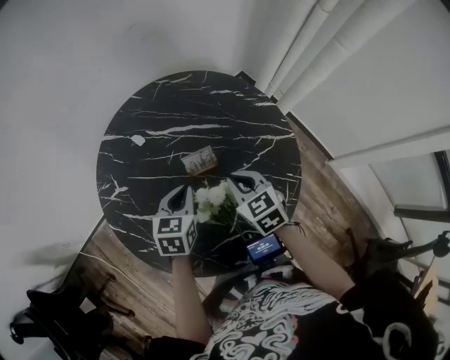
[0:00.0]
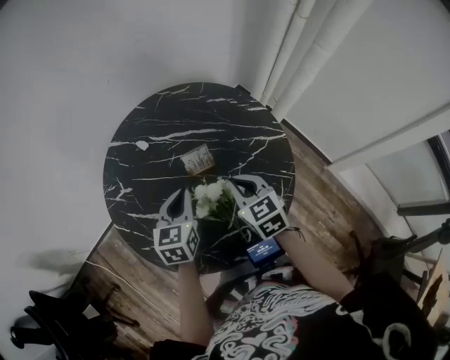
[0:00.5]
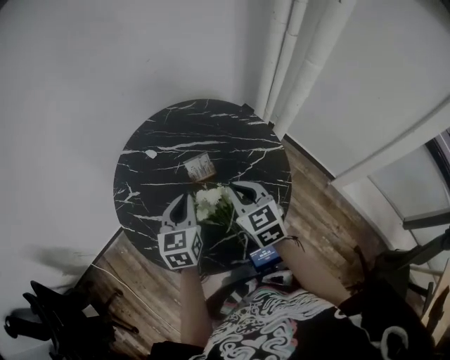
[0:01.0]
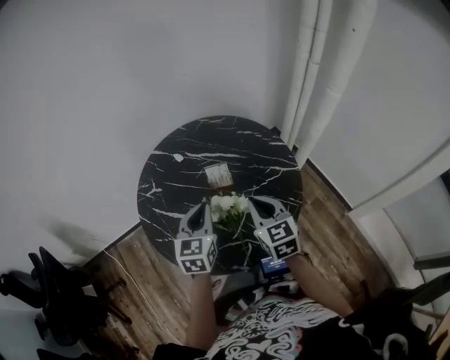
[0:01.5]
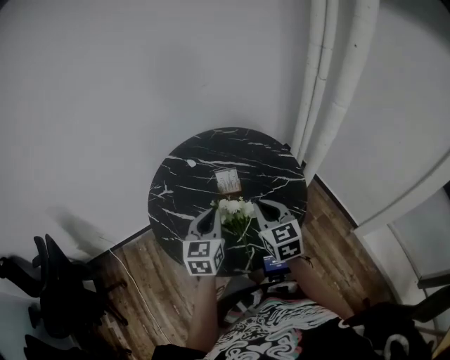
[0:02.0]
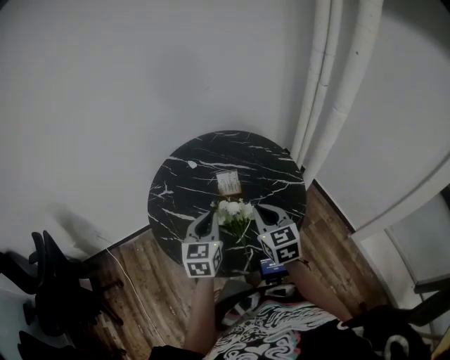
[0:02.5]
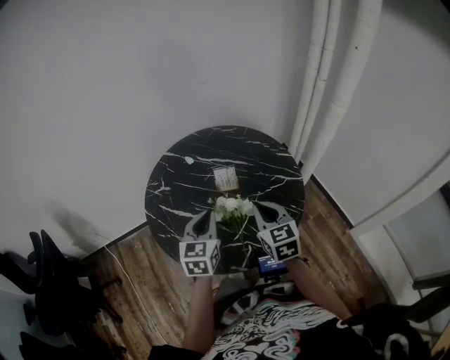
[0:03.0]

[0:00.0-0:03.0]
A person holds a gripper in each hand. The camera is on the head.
0.0 to 1.5 s: The two grippers go some 15 cm upward and backward. The left gripper swivels about 20 degrees.
1.5 to 3.0 s: There are only small adjustments of the grippers.

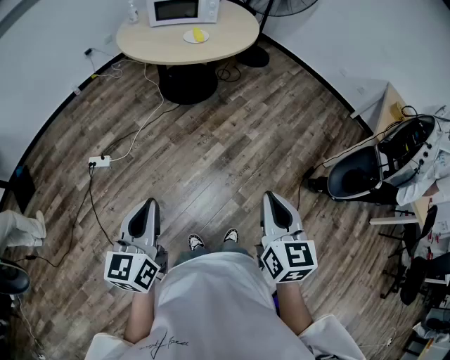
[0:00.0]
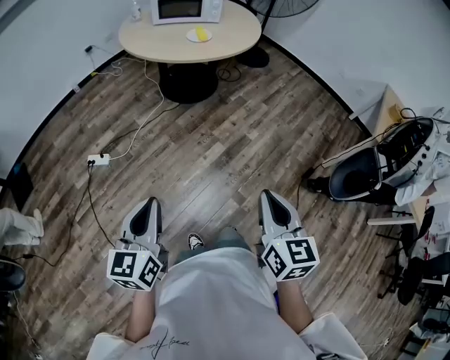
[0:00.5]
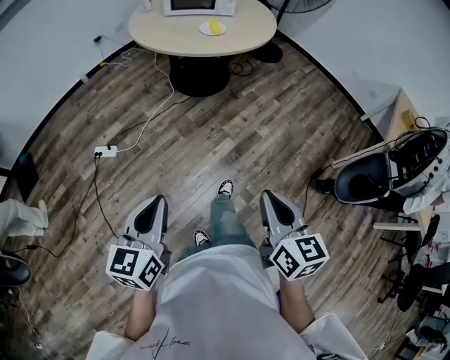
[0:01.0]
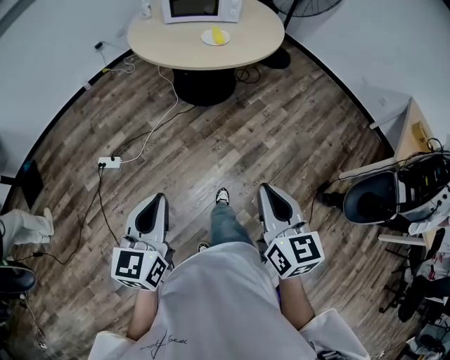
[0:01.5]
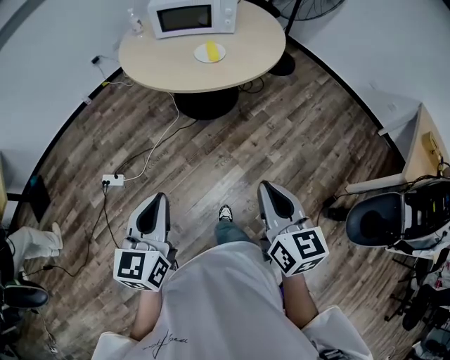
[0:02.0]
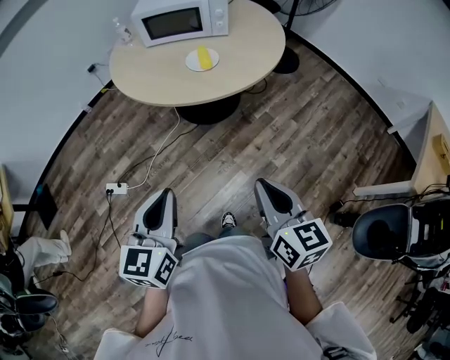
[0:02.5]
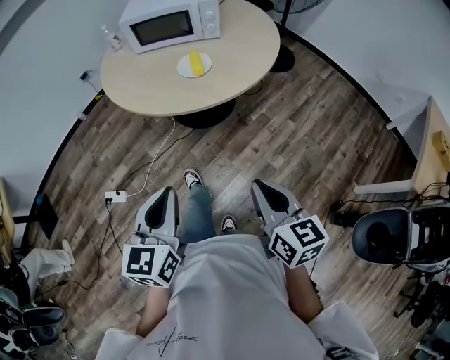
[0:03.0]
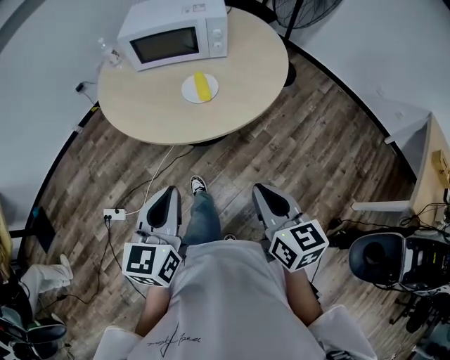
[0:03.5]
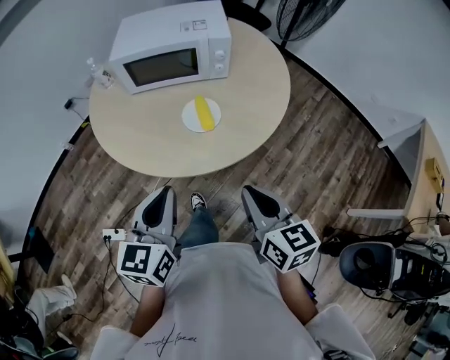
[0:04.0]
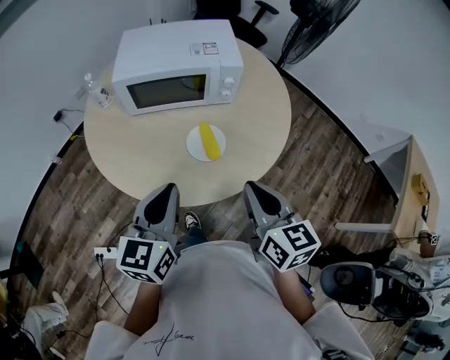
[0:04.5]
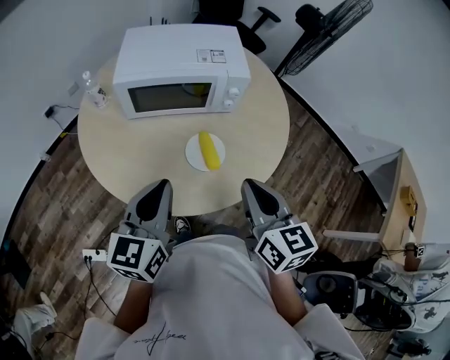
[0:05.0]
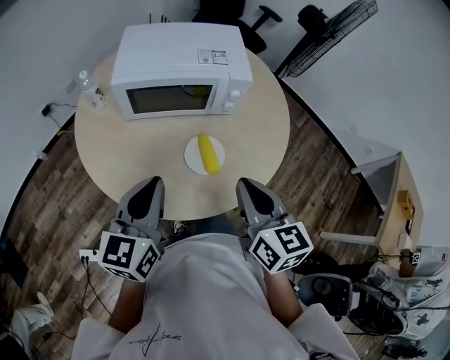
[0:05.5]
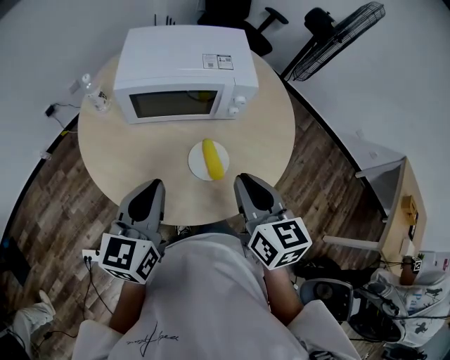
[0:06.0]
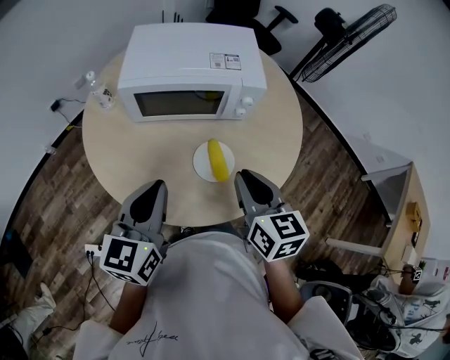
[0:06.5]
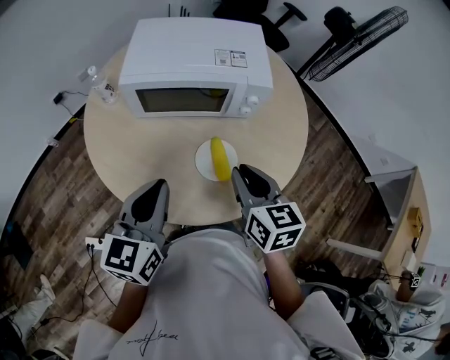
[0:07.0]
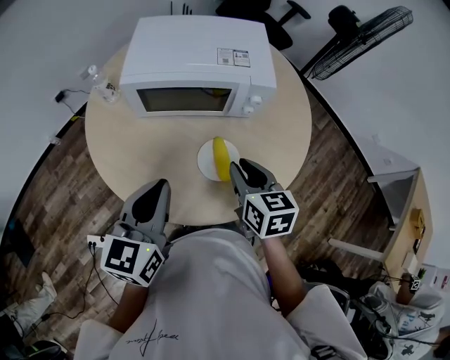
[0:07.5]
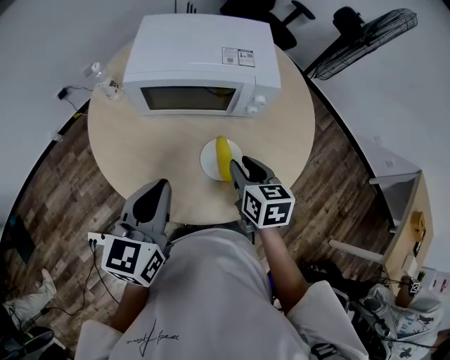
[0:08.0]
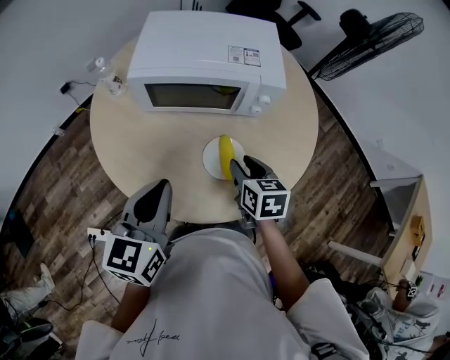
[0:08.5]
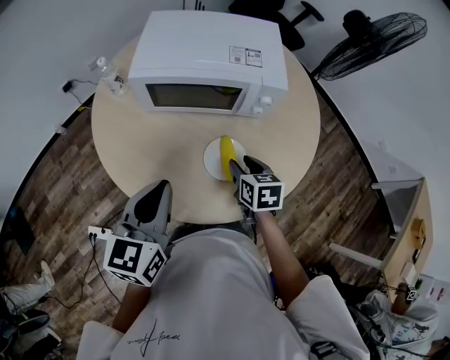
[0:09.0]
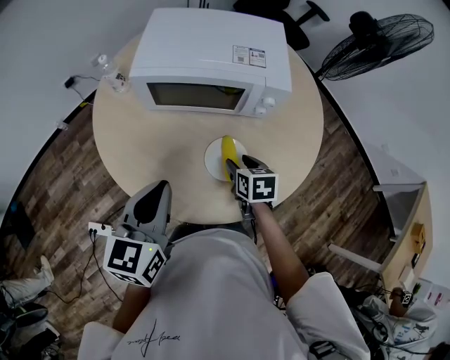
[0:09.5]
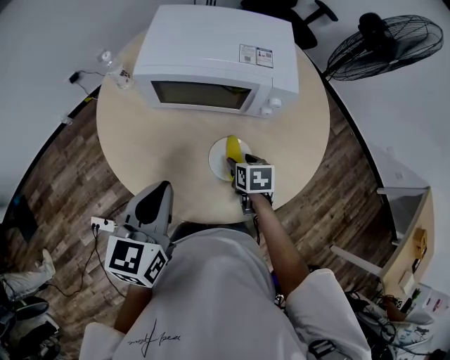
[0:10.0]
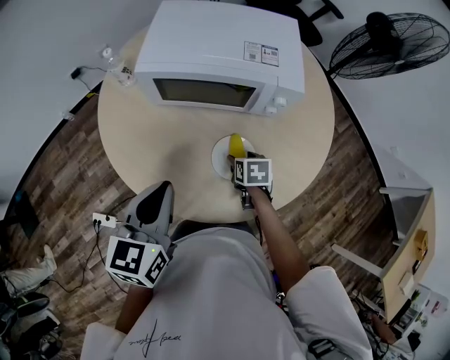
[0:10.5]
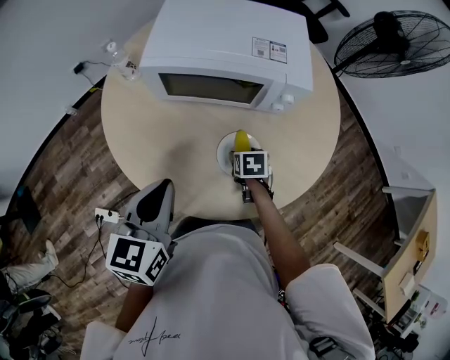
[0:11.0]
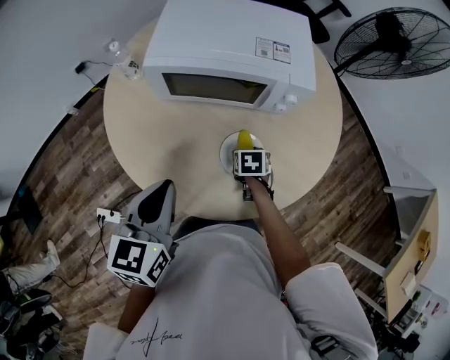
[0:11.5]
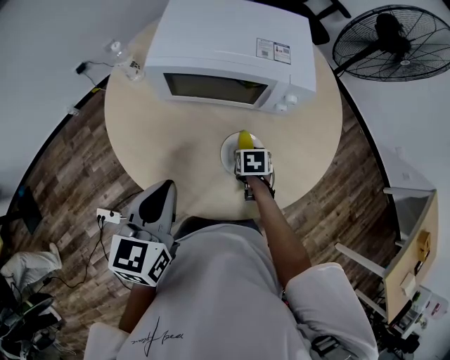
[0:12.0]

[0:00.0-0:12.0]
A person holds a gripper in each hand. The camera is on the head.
0.0 to 2.0 s: Both grippers move forward, about 30 cm.
2.0 to 4.0 s: The two grippers go approximately 40 cm forward.
4.0 to 6.0 s: Both grippers move forward and to the left, roughly 25 cm.
6.0 to 8.0 s: The right gripper goes roughly 15 cm downward and forward.
8.0 to 10.0 s: The right gripper goes roughly 15 cm downward, rotates some 20 degrees, and opens up.
10.0 to 12.0 s: The right gripper heads downward, covering approximately 5 cm.

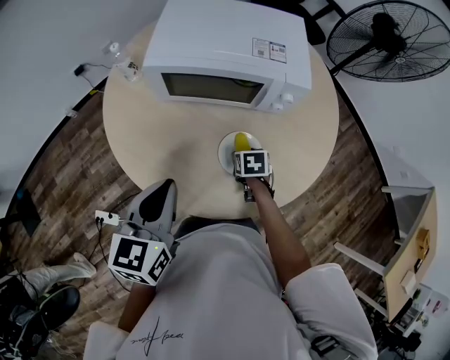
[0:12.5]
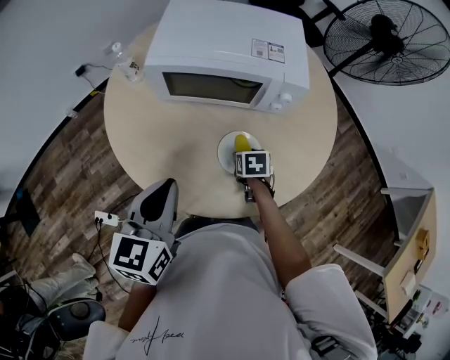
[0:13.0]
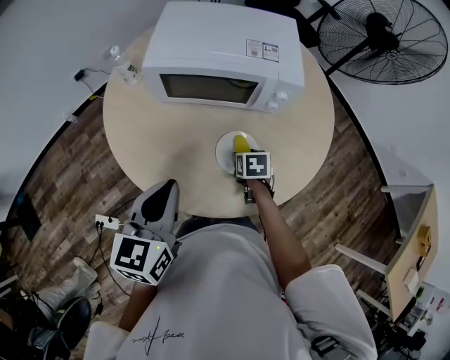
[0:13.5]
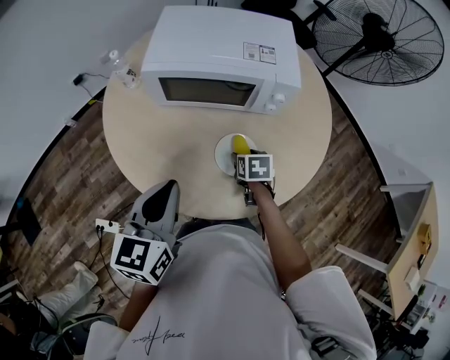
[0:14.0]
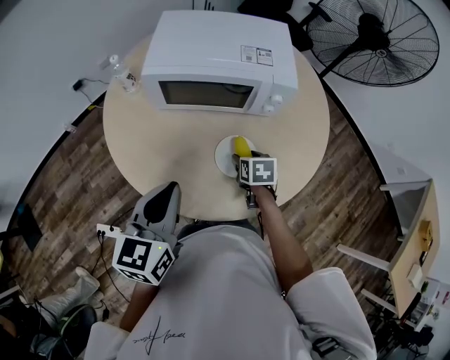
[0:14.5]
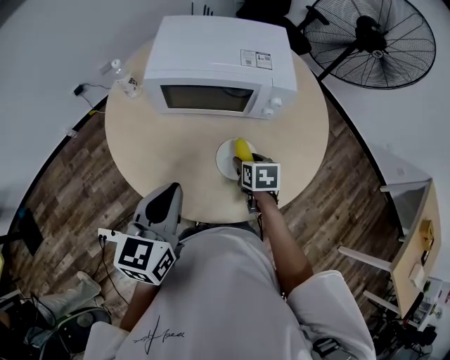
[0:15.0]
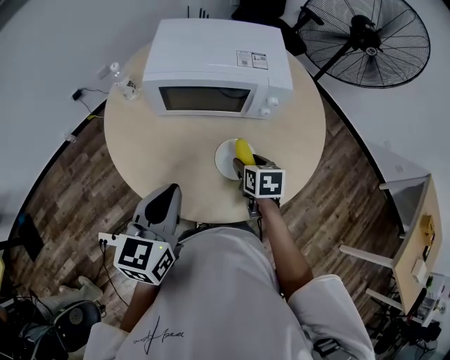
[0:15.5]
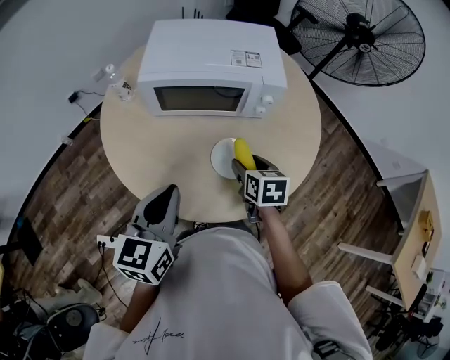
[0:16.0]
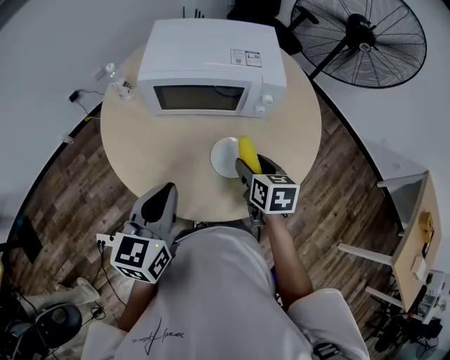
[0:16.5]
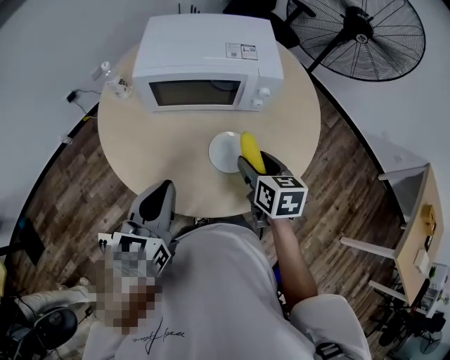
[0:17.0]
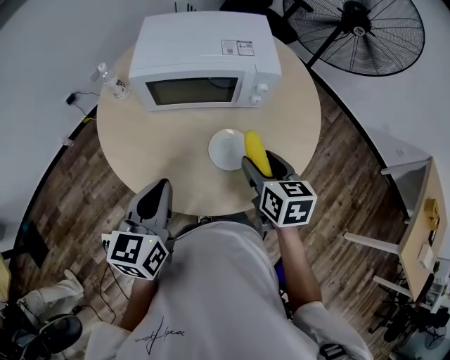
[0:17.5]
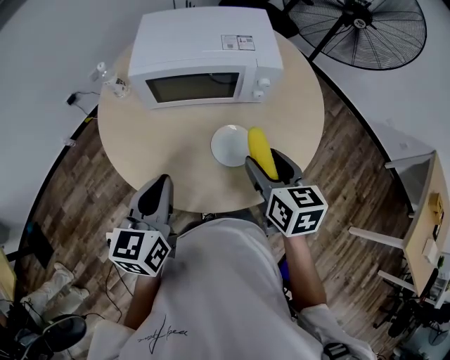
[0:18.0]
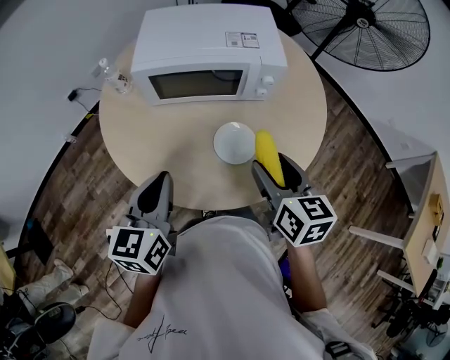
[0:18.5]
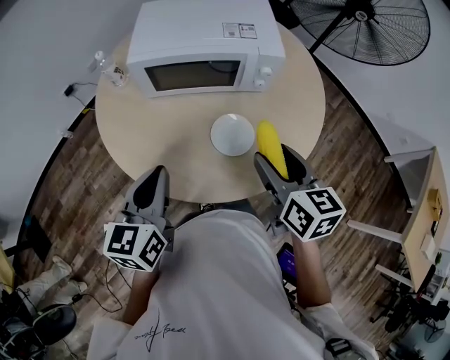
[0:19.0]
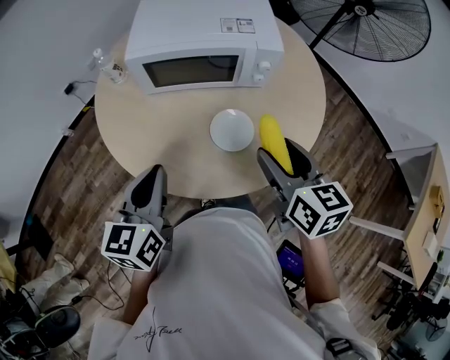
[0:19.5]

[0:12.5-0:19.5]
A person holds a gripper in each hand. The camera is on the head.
12.5 to 14.5 s: The right gripper shifts approximately 5 cm upward.
14.5 to 16.0 s: The right gripper is displaced upward by about 10 cm.
16.0 to 17.5 s: The right gripper moves upward, some 10 cm.
17.5 to 19.5 s: The right gripper shifts some 5 cm upward.

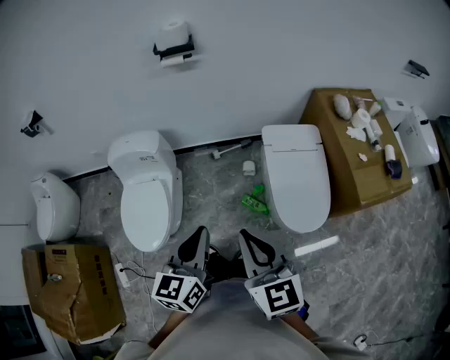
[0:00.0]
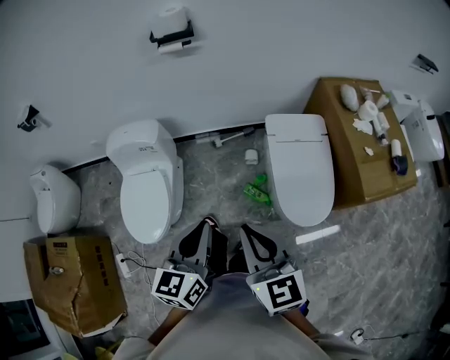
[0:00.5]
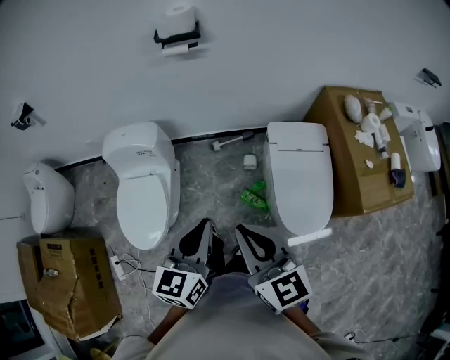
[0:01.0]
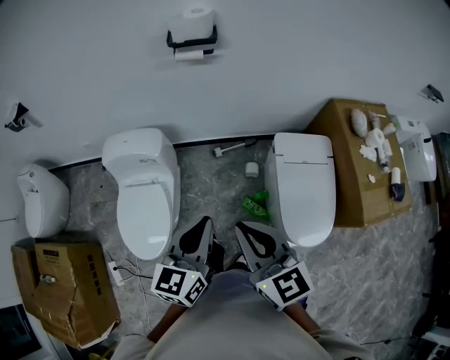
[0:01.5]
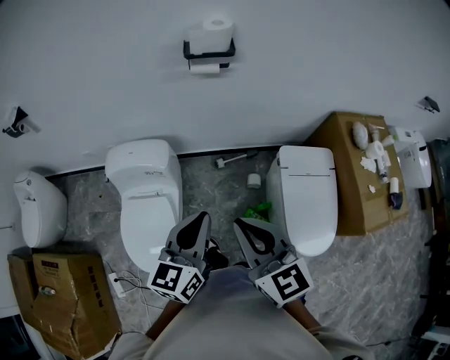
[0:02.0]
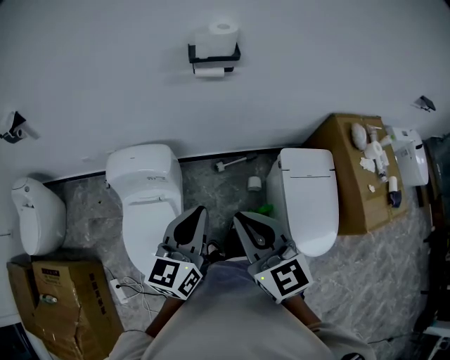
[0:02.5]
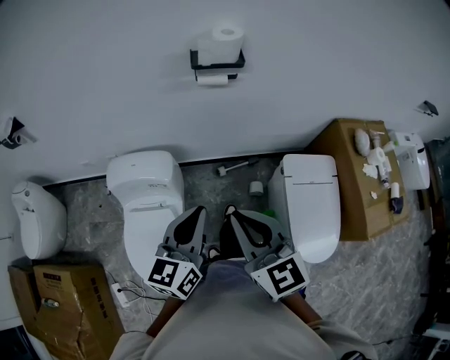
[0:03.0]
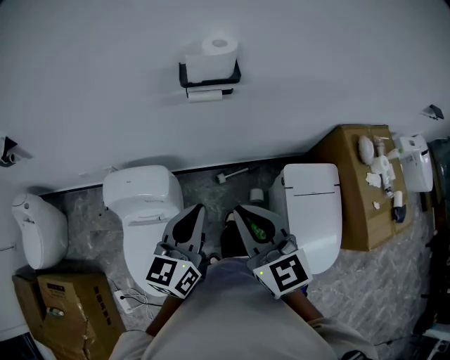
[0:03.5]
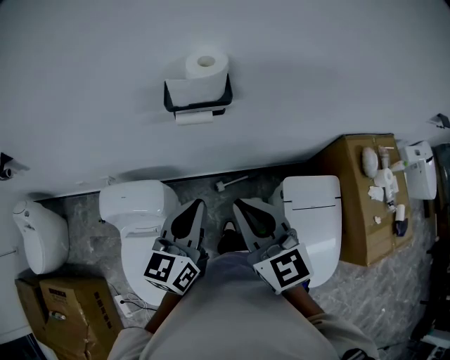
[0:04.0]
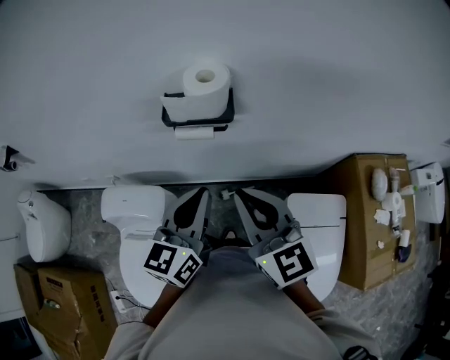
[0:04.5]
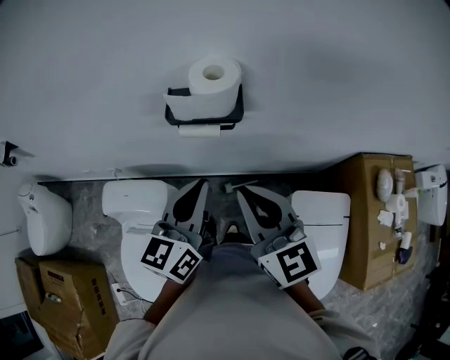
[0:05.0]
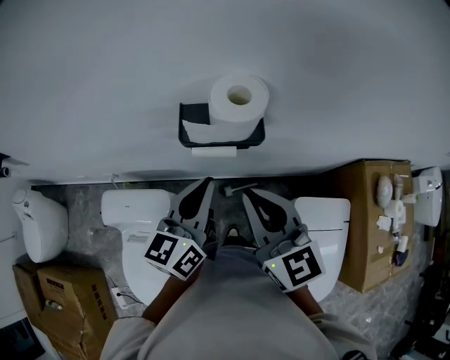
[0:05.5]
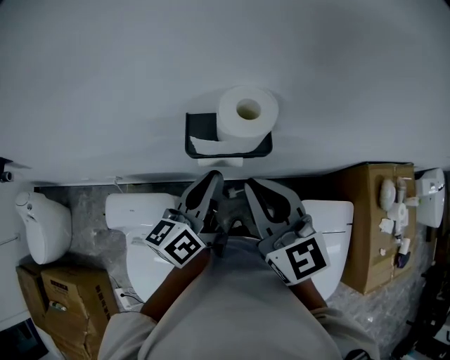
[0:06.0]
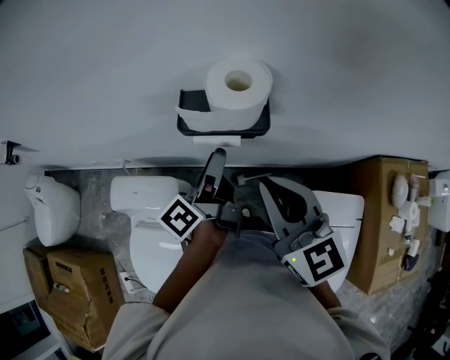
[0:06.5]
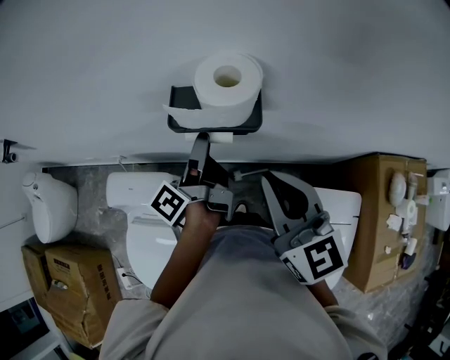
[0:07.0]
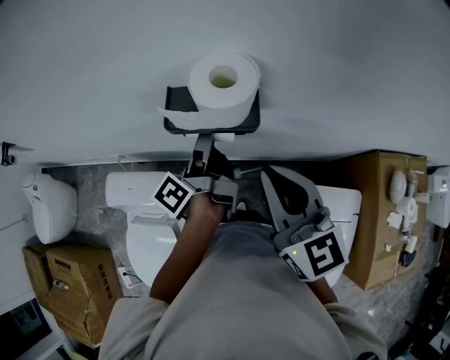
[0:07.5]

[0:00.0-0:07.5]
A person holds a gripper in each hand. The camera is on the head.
0.0 to 2.0 s: The grippers both shift forward and to the left by roughly 25 cm.
2.0 to 4.0 s: Both grippers travel together forward, approximately 25 cm.
4.0 to 5.5 s: Both grippers move forward, about 15 cm.
5.5 to 7.5 s: The right gripper heads to the right, covering approximately 5 cm, while the left gripper is displaced forward and downward by roughly 10 cm, twists some 50 degrees counterclockwise, seen from behind, and opens its fingers.
